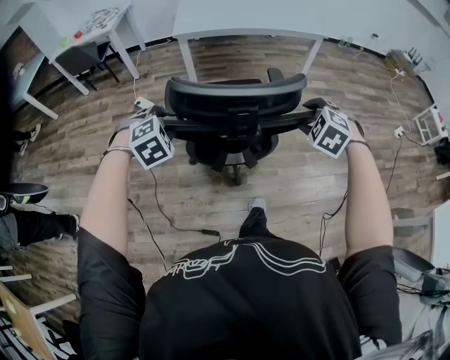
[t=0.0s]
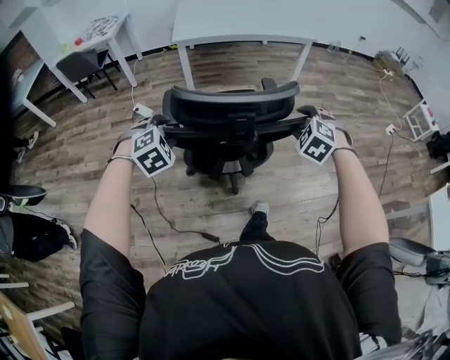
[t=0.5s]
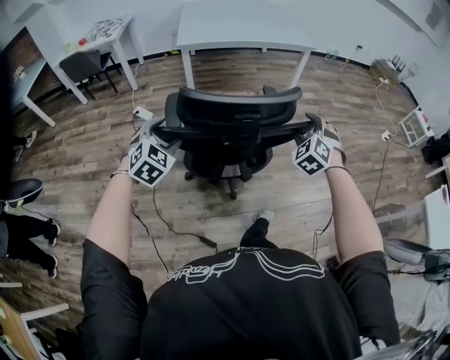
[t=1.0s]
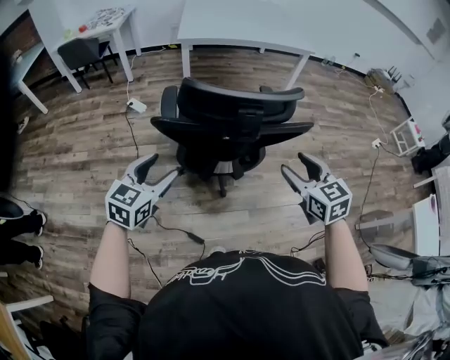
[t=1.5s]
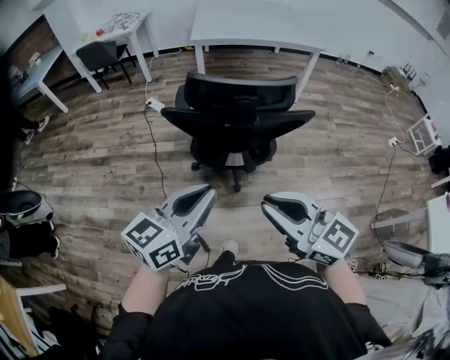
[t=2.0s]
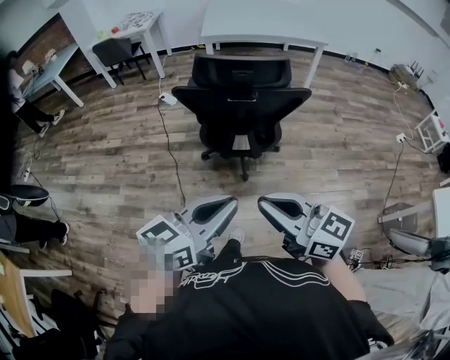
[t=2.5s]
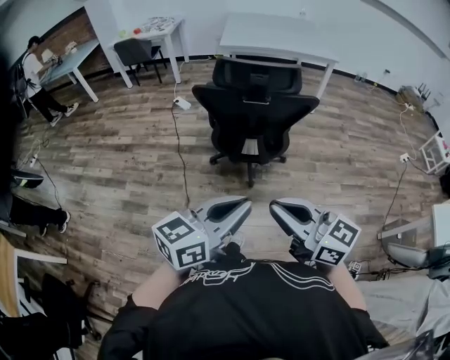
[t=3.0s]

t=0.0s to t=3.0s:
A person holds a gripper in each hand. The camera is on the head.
t=0.0s to t=1.5s: The grippers both shift backward by about 20 cm. The right gripper rolls clockwise, seen from behind, by approximately 40 degrees. The left gripper points its fingers approximately 40 degrees further upward.
t=1.5s to t=3.0s: The left gripper shifts about 35 cm backward and to the right, rotates some 30 degrees, and closes. Meanwhile the right gripper shifts approximately 30 cm backward, rotates approximately 50 degrees, and closes.

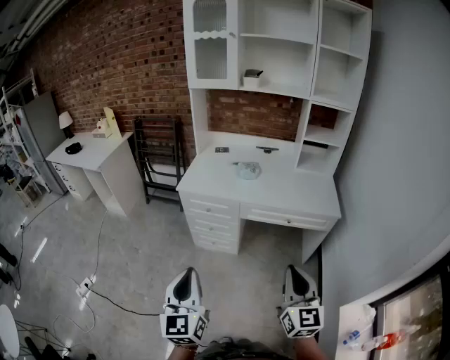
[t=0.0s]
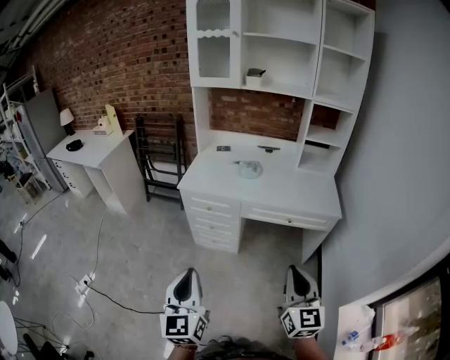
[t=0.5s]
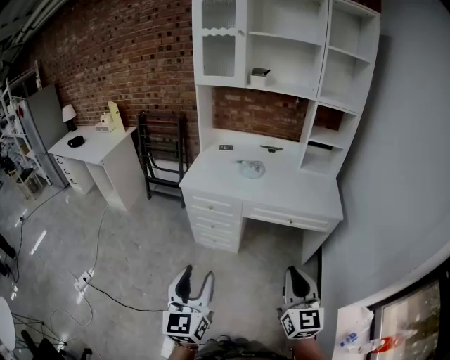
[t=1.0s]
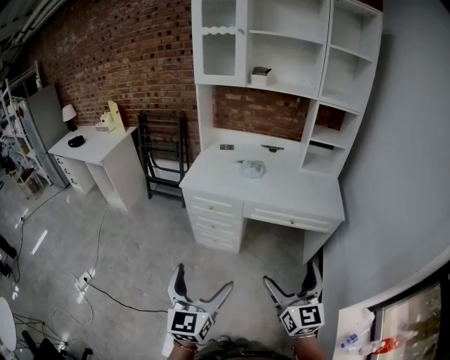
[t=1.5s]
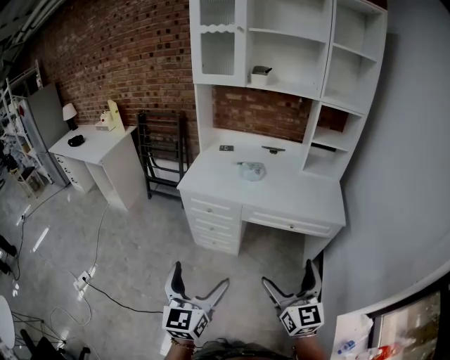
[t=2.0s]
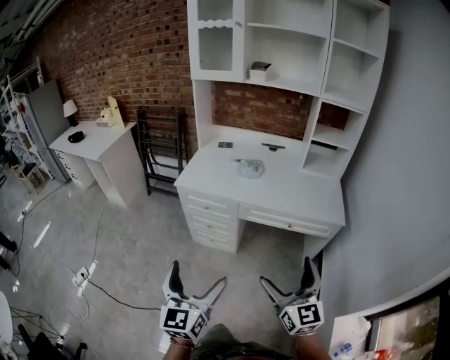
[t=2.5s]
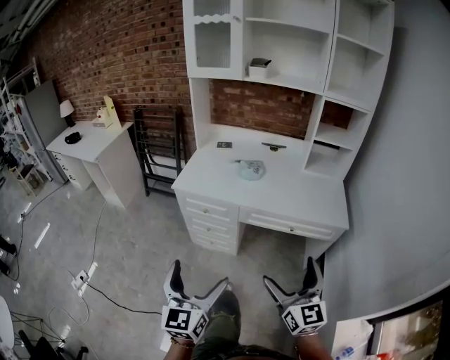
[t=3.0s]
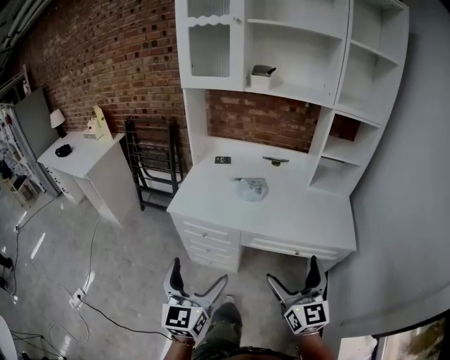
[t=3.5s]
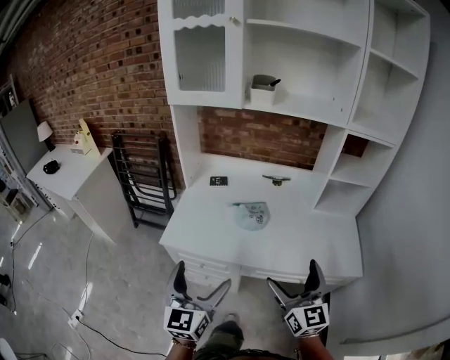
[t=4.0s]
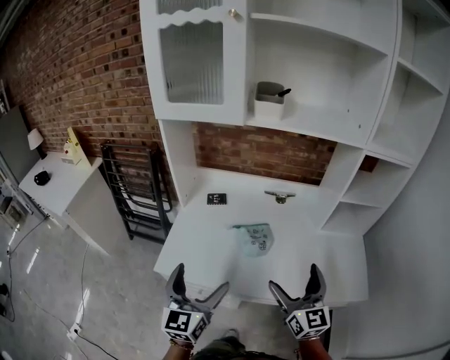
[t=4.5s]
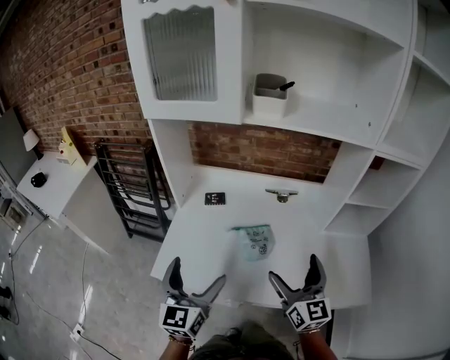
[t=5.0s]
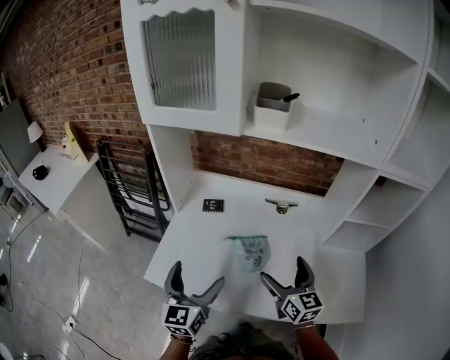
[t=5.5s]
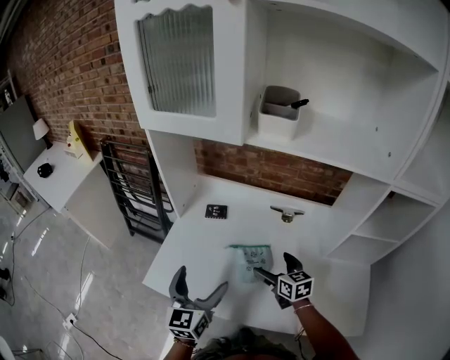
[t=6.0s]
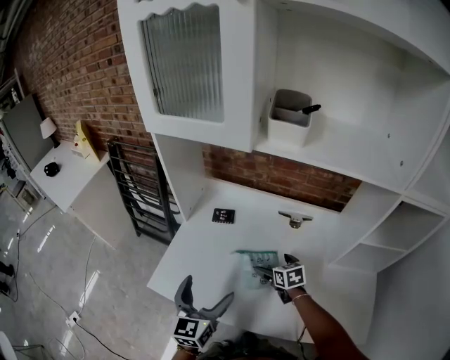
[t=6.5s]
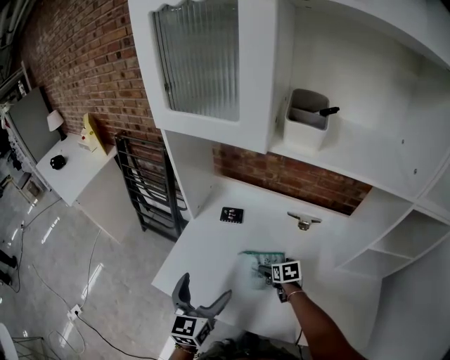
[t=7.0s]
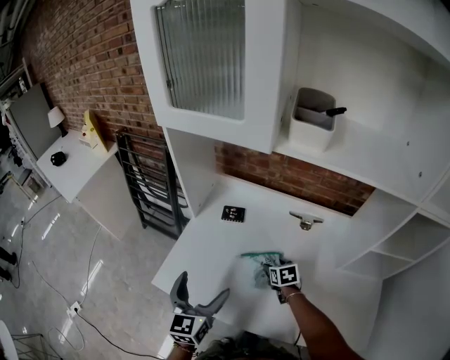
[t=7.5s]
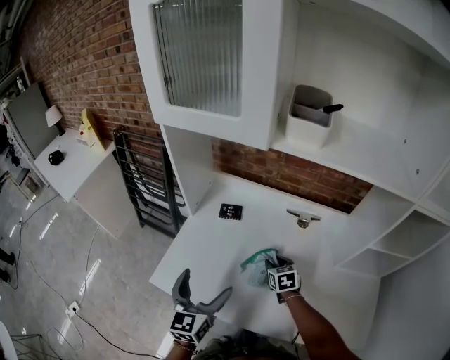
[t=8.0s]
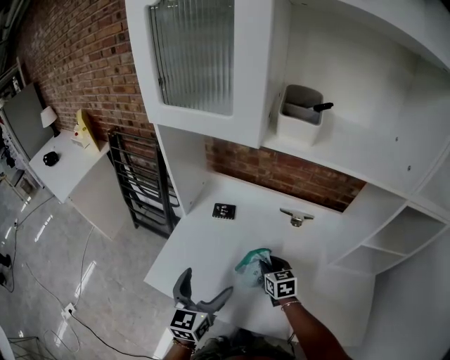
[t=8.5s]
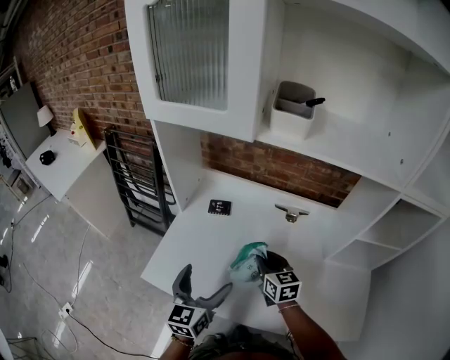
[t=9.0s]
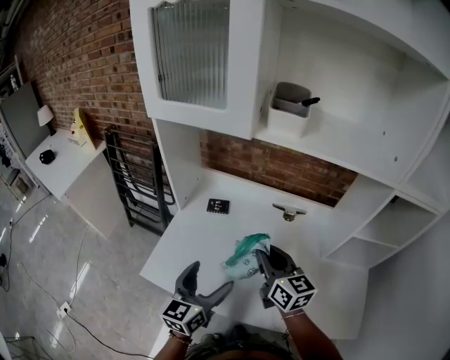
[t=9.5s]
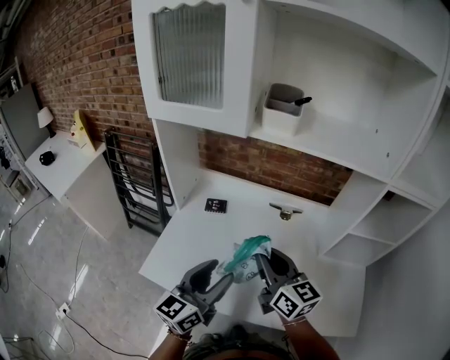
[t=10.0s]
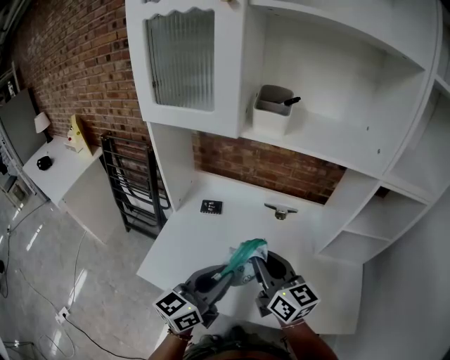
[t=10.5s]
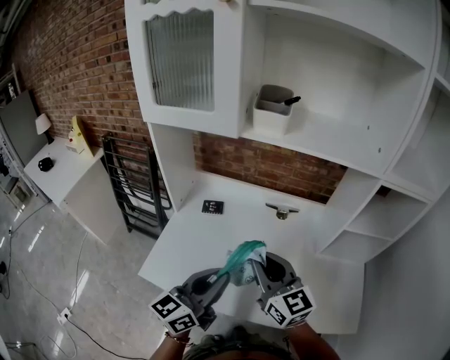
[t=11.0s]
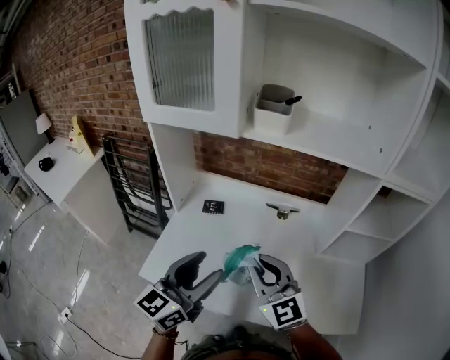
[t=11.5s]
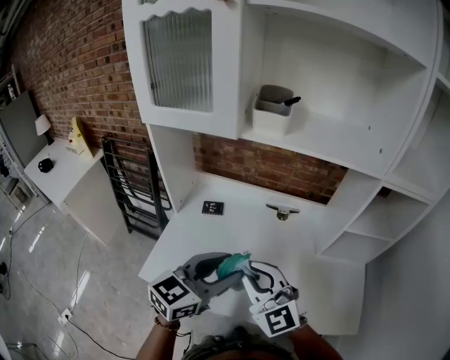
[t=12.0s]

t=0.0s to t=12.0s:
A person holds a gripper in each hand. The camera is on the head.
t=0.0s to t=2.0s: Both grippers move forward, about 5 cm. The right gripper opens up. Meanwhile the left gripper opens up.
t=2.0s to t=4.0s: Both grippers move forward, some 35 cm.
t=4.0s to t=6.0s: The right gripper travels forward and downward by roughly 40 cm, and rotates approximately 40 degrees. Meanwhile the left gripper goes some 25 cm forward.
t=6.0s to t=8.0s: The right gripper shifts approximately 10 cm downward and forward, turns by approximately 20 degrees, and closes its fingers.
t=8.0s to t=10.0s: The left gripper goes some 10 cm to the right and upward, swivels roughly 30 degrees, and closes. Meanwhile the right gripper travels upward and backward by some 30 cm, and tilts its fingers about 40 degrees upward.
t=10.0s to t=12.0s: The right gripper shifts about 5 cm backward, and twists some 40 degrees counterclockwise, seen from behind. The left gripper moves some 5 cm, and turns by approximately 20 degrees.

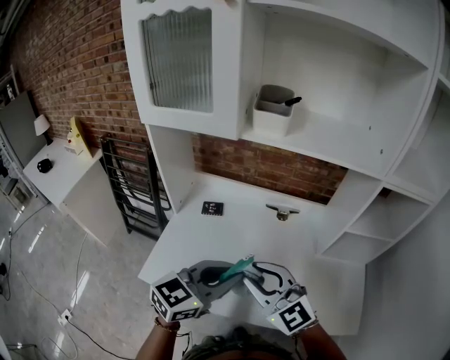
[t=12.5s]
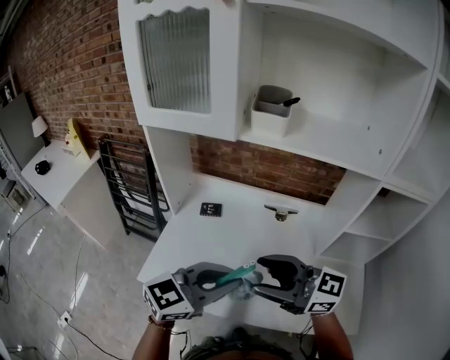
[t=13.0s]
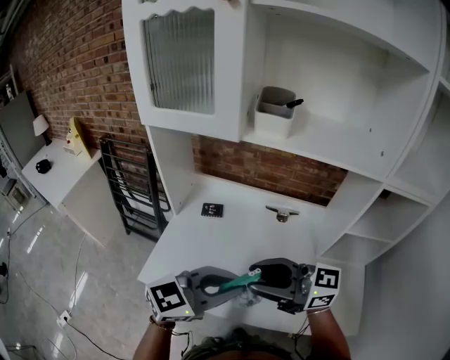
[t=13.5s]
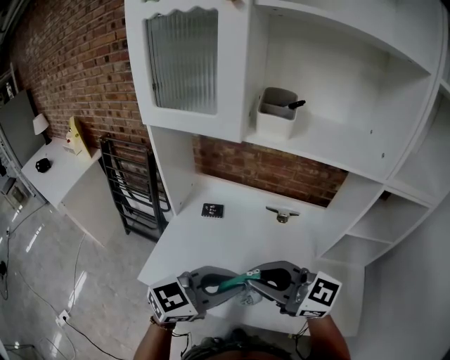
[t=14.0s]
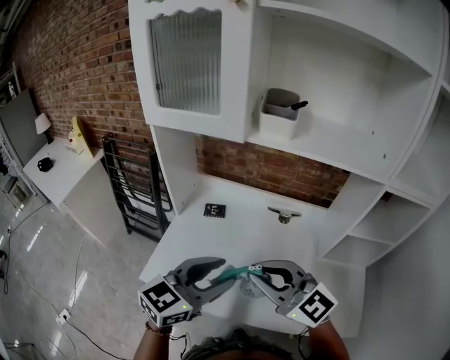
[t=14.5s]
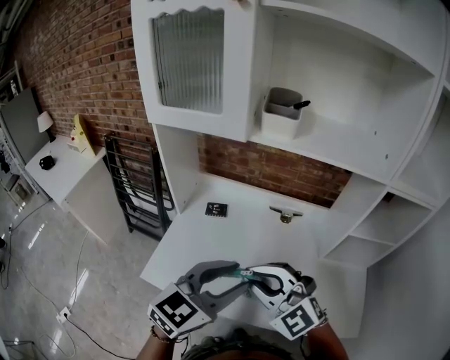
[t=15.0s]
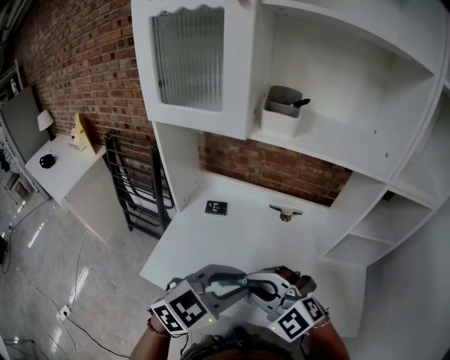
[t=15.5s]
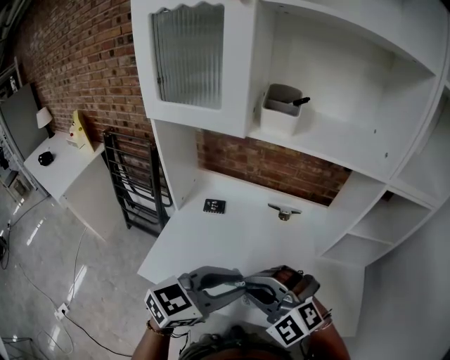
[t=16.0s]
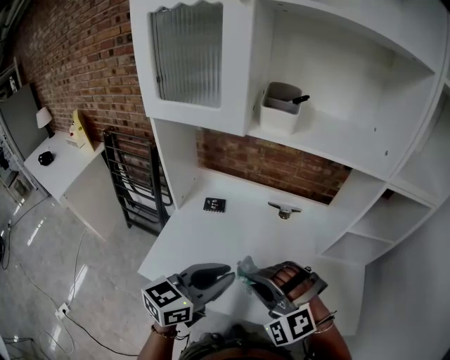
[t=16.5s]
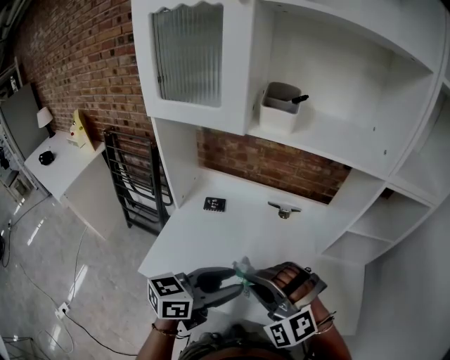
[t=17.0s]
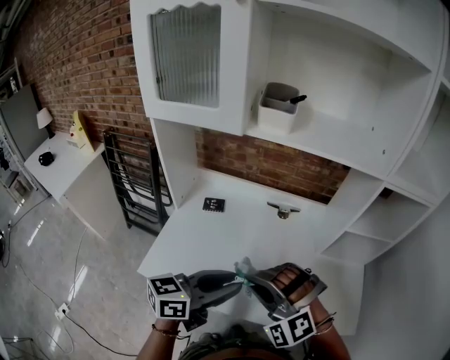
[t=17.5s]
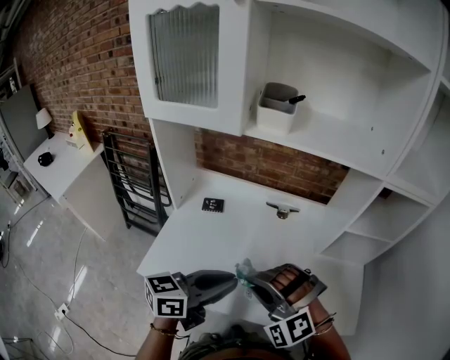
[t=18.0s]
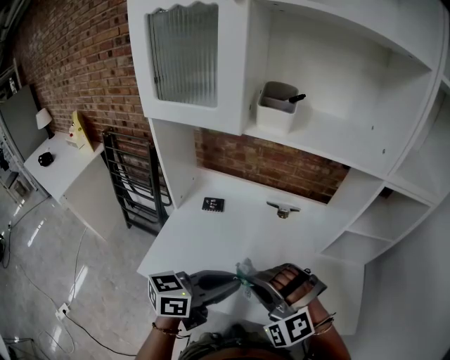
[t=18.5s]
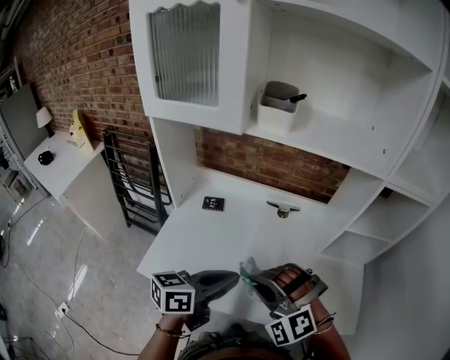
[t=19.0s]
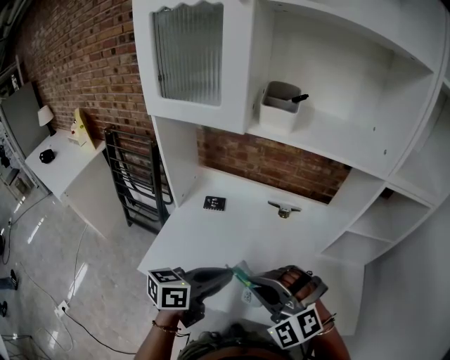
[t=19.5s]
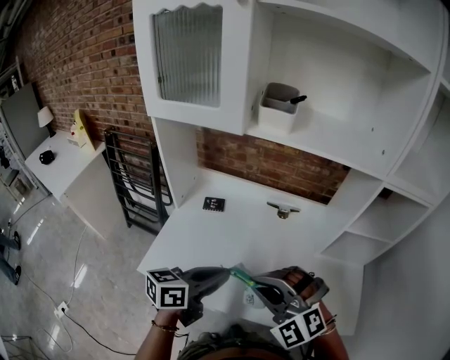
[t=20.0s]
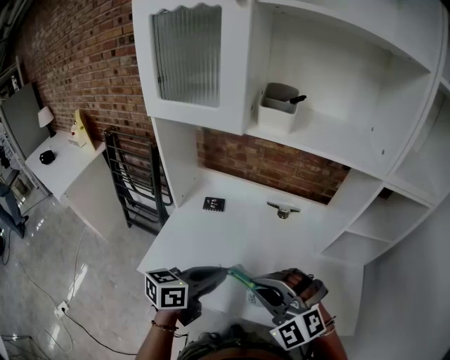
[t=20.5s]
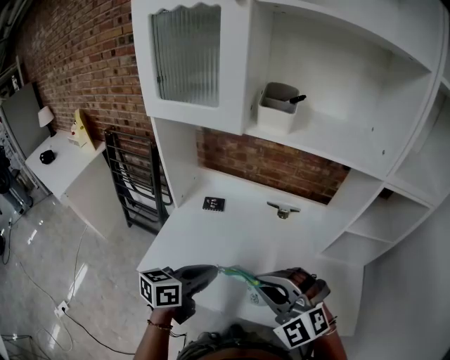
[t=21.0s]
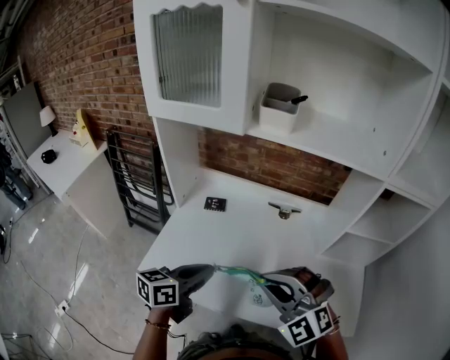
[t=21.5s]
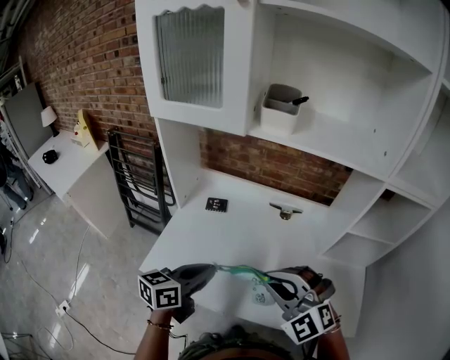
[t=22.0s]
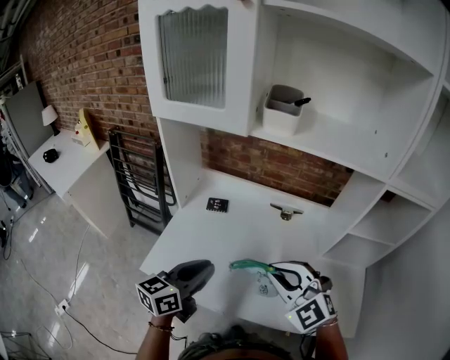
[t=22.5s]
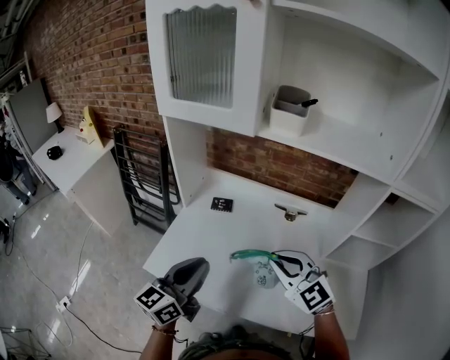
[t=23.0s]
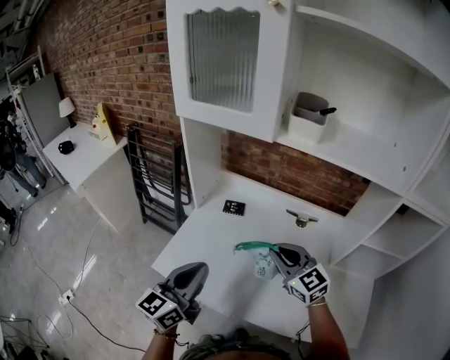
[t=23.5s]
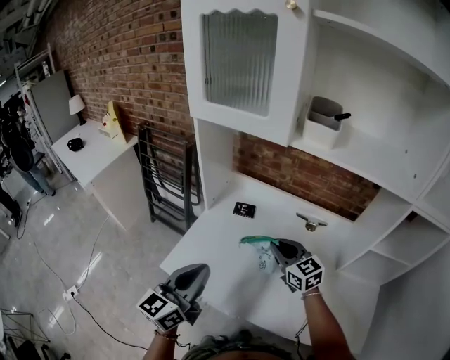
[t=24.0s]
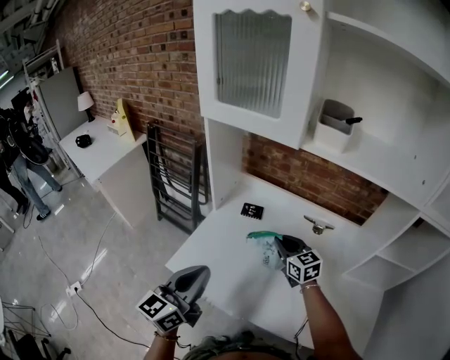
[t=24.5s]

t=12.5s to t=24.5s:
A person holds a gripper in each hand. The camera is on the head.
t=14.5s to t=16.5s: The right gripper shifts approximately 5 cm downward, and rotates around the line of its fingers by some 50 degrees, counterclockwise from behind.
t=16.5s to t=18.5s: There are only small adjustments of the grippers.
t=18.5s to t=20.5s: The left gripper shifts by approximately 5 cm.
t=20.5s to t=22.5s: The right gripper ends up about 5 cm from where it was.
t=22.5s to t=24.5s: The left gripper heads to the left, covering about 10 cm, and swivels approximately 20 degrees; the right gripper is displaced forward and downward by about 25 cm, and rotates around the line of its fingers by approximately 40 degrees, clockwise from behind.
